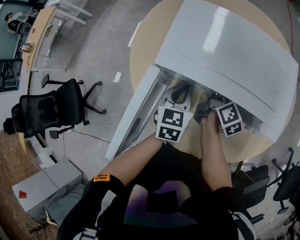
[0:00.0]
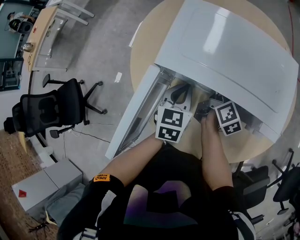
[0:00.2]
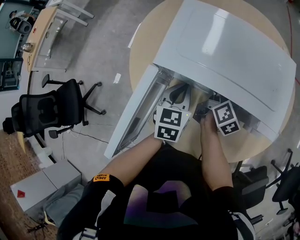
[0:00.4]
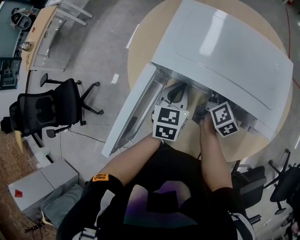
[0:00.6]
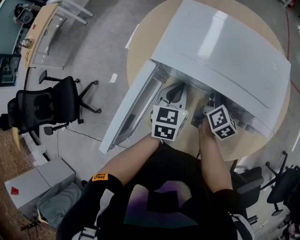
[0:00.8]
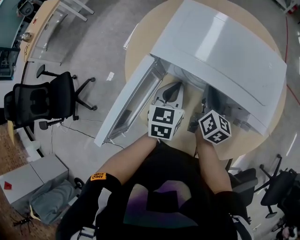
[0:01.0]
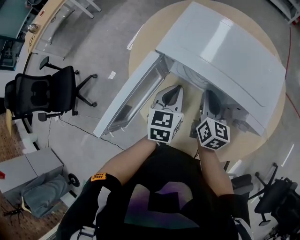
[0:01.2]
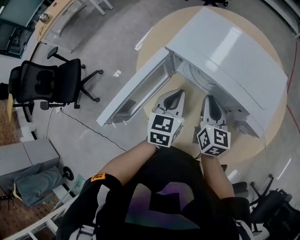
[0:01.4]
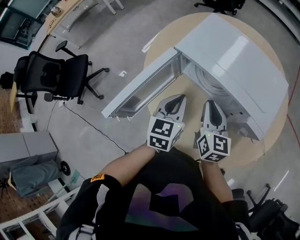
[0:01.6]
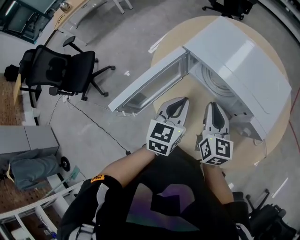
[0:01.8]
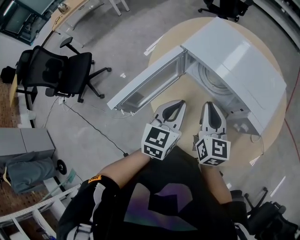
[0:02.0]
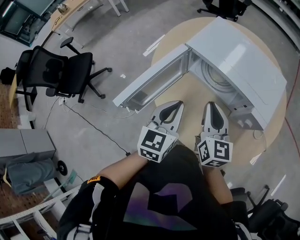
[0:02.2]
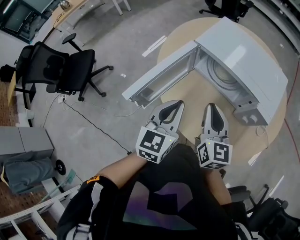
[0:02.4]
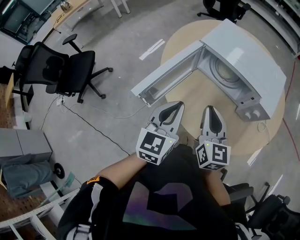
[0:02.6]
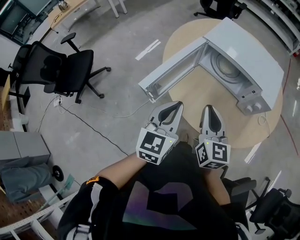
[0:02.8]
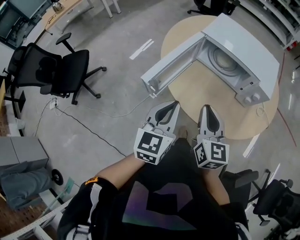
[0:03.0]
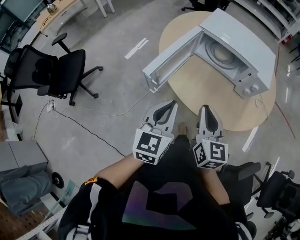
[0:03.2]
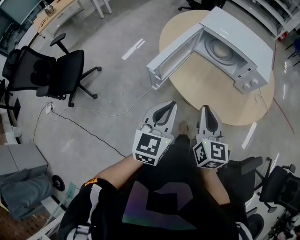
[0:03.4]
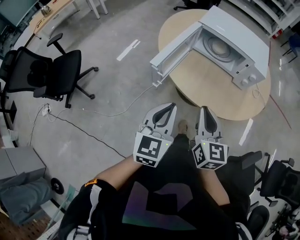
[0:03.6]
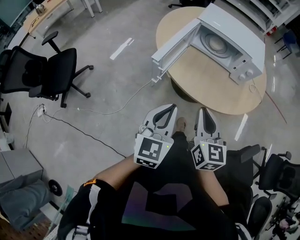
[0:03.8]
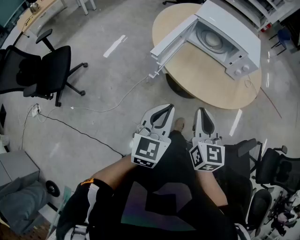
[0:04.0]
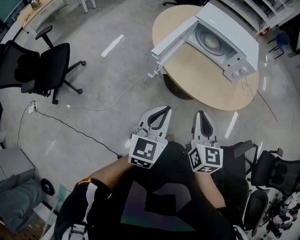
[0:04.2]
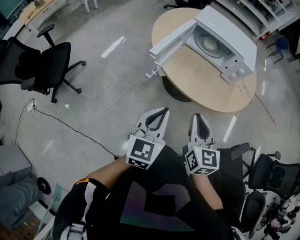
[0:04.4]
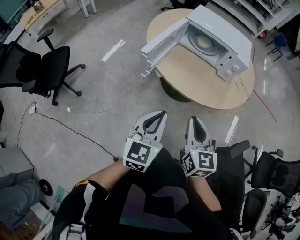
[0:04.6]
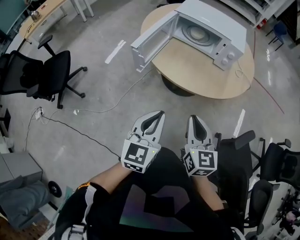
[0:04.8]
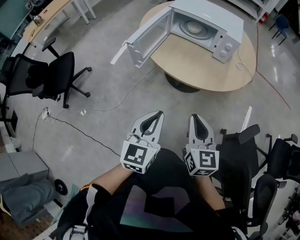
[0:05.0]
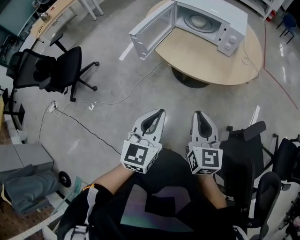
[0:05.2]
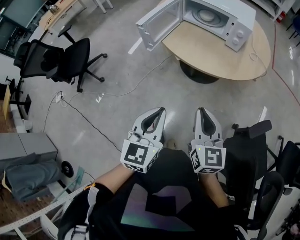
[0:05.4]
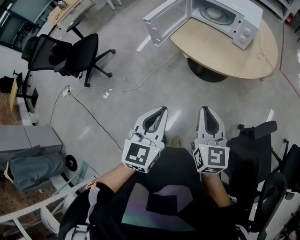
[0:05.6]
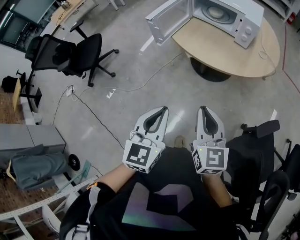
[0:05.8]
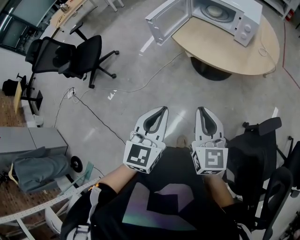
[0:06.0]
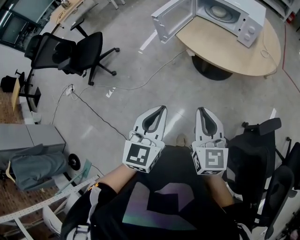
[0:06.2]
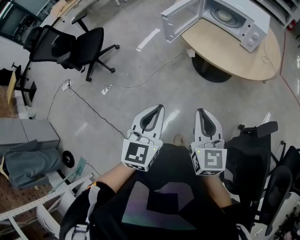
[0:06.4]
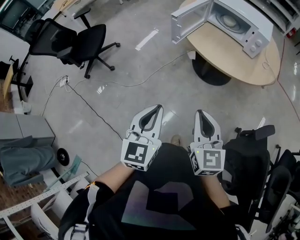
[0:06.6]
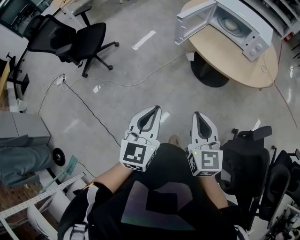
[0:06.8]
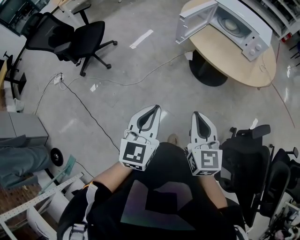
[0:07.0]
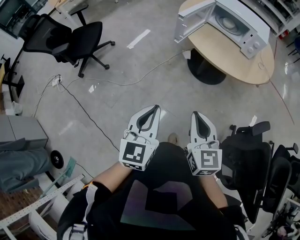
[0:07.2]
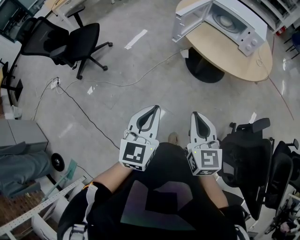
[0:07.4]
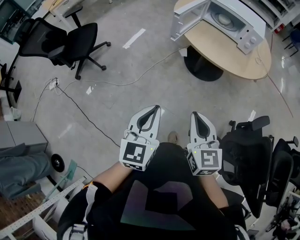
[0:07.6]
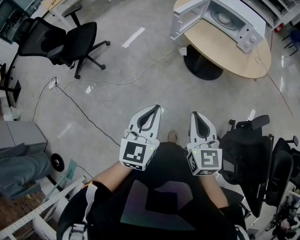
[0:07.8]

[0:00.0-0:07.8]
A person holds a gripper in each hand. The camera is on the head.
0:00.0 to 0:01.6: The right gripper goes approximately 20 cm backward, upward and to the left, and rolls counterclockwise, seen from behind, by some 50 degrees; the left gripper is displaced backward and upward by some 10 cm.
0:01.6 to 0:03.2: Both grippers move backward and to the left, about 30 cm.
0:03.2 to 0:04.6: Both grippers travel together backward, some 15 cm.
0:04.6 to 0:06.2: Both grippers move backward, roughly 20 cm.
0:06.2 to 0:07.8: The left gripper goes approximately 15 cm to the left. Meanwhile the right gripper shifts roughly 15 cm to the left and backward.

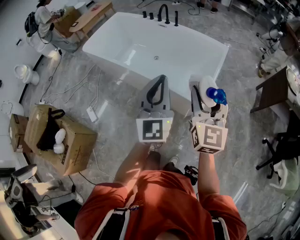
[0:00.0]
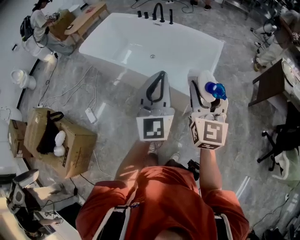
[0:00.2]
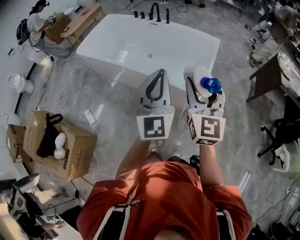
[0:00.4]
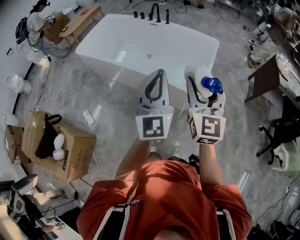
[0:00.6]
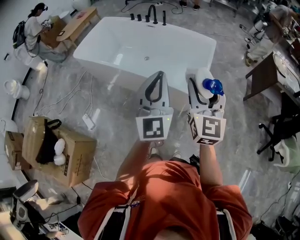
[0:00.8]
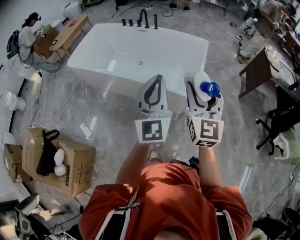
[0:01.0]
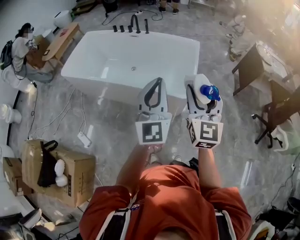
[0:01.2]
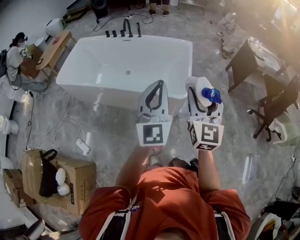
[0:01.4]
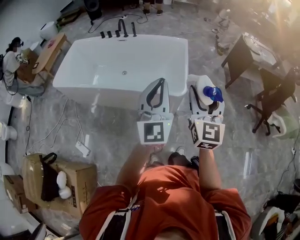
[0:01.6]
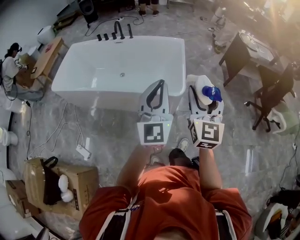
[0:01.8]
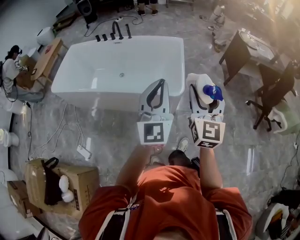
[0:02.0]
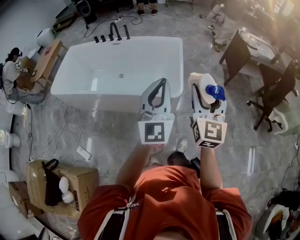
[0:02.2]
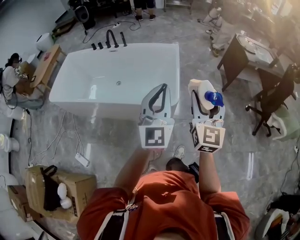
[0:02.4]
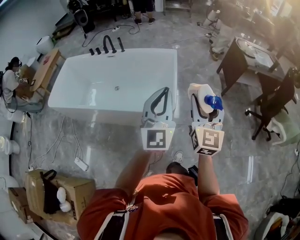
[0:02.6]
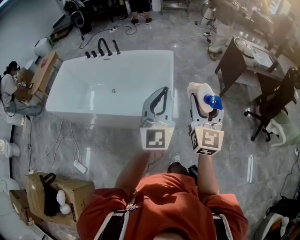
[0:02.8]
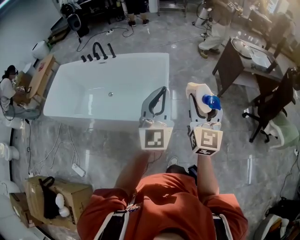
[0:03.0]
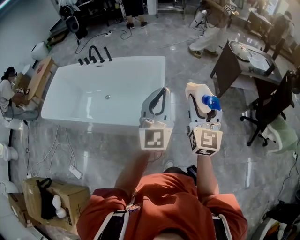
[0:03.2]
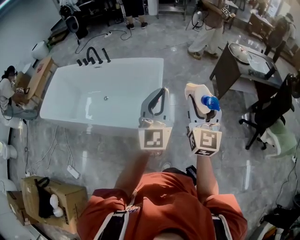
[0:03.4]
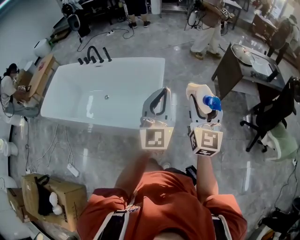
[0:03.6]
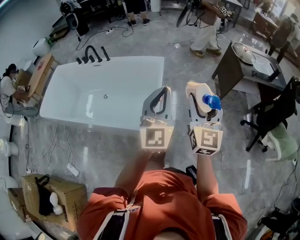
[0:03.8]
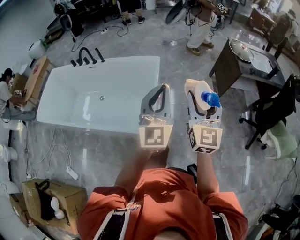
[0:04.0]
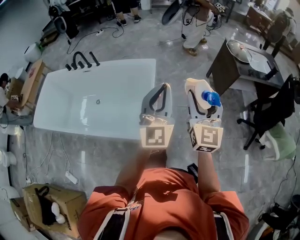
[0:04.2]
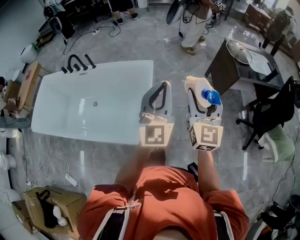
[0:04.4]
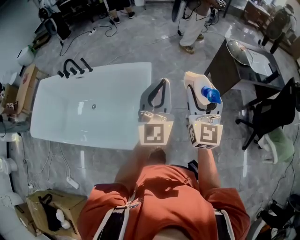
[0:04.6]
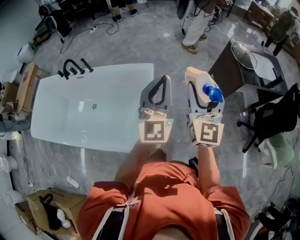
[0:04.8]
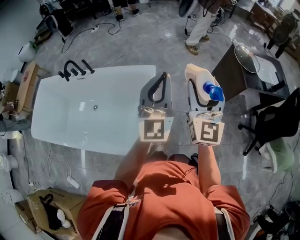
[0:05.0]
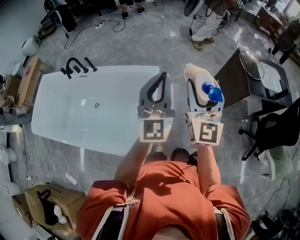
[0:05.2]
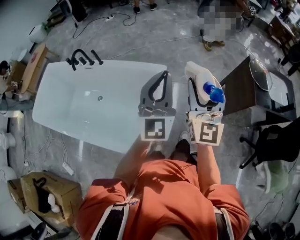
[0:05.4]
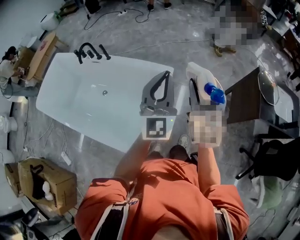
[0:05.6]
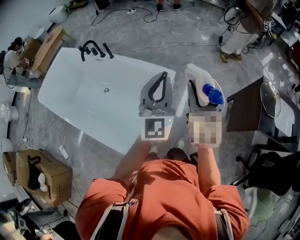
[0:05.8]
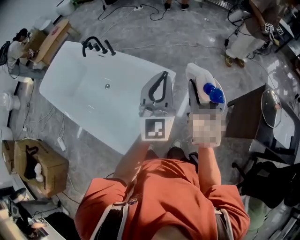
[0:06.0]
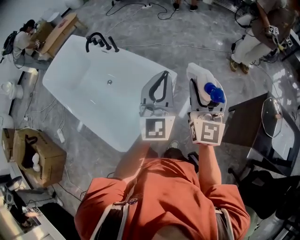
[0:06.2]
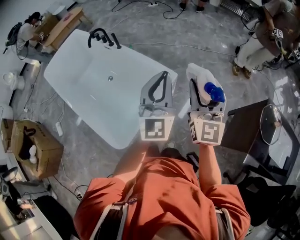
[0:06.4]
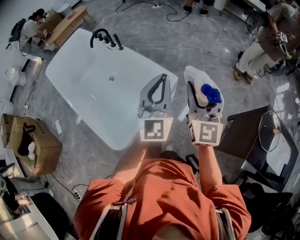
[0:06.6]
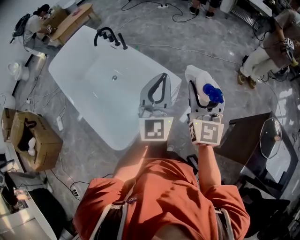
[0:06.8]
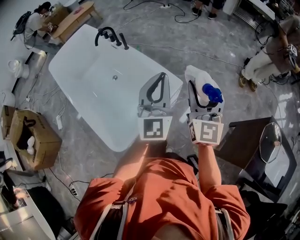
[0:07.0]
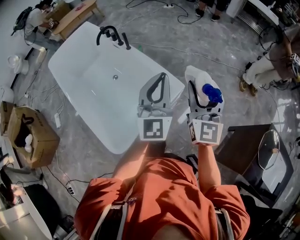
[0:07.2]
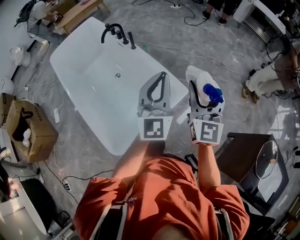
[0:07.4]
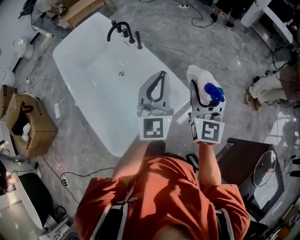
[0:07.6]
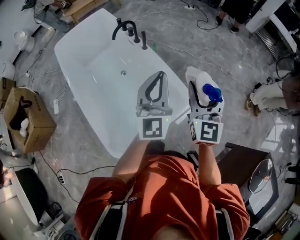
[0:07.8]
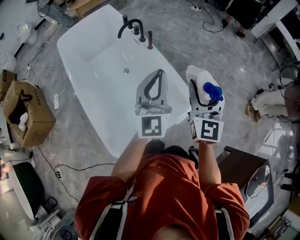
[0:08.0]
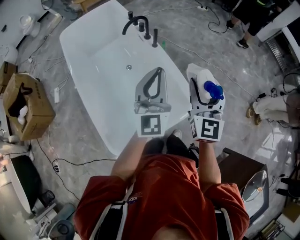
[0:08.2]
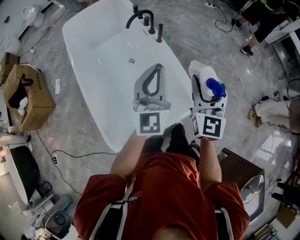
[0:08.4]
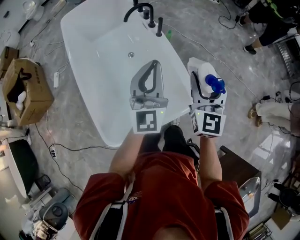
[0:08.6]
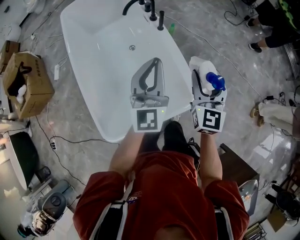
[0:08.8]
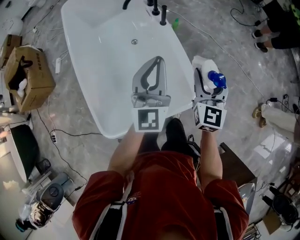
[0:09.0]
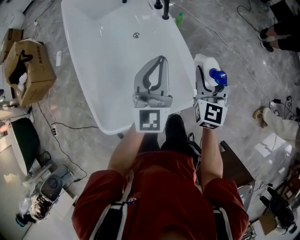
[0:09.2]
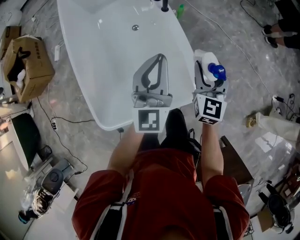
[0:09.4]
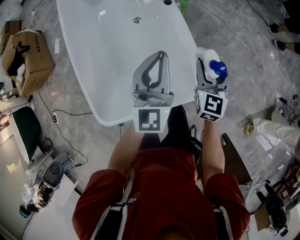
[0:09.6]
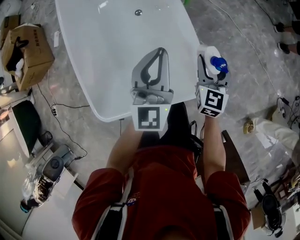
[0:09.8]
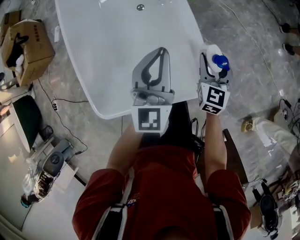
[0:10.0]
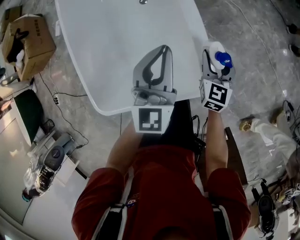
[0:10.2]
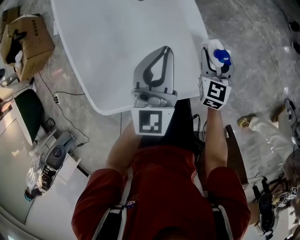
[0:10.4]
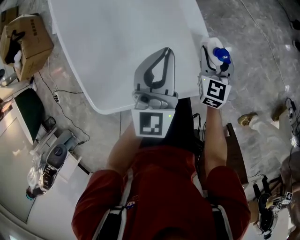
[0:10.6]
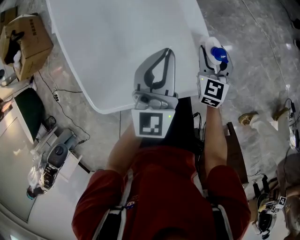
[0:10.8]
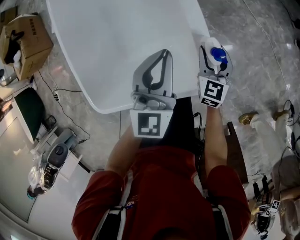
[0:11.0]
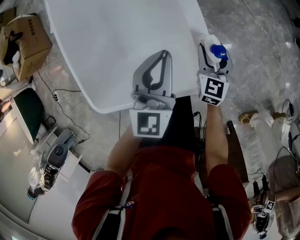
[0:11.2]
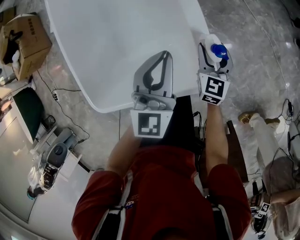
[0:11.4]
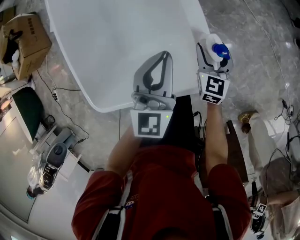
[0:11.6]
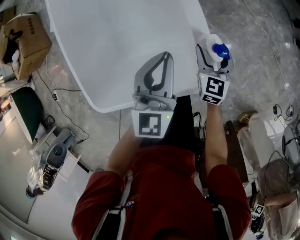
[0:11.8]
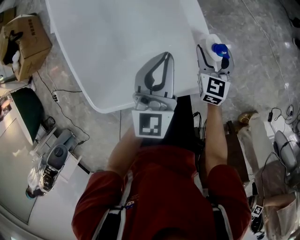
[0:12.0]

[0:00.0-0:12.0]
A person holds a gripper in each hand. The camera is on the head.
0:00.0 to 0:01.6: The right gripper goes some 10 cm backward, and changes its angle by approximately 20 degrees; the left gripper shifts about 5 cm backward, and turns by some 20 degrees.
0:01.6 to 0:03.0: Both grippers travel together forward and to the right, some 25 cm.
0:03.0 to 0:04.4: The two grippers go roughly 25 cm forward and to the right.
0:04.4 to 0:06.0: The right gripper changes place by about 30 cm, and swivels approximately 30 degrees, while the left gripper moves roughly 25 cm, and rotates approximately 30 degrees.
0:06.0 to 0:07.6: The left gripper moves forward and to the left, roughly 20 cm, and turns by about 20 degrees. The right gripper goes about 20 cm forward, and changes its angle by about 20 degrees.
0:07.6 to 0:09.0: The left gripper heads forward, downward and to the left, covering some 20 cm, while the right gripper heads forward and downward, covering roughly 25 cm, and rotates roughly 20 degrees.
0:09.0 to 0:10.4: The right gripper heads downward, covering roughly 25 cm. The left gripper heads downward, covering roughly 15 cm.
0:10.4 to 0:12.0: The grippers stay close to where they were, moving slightly.

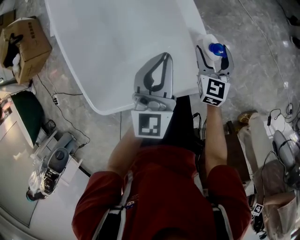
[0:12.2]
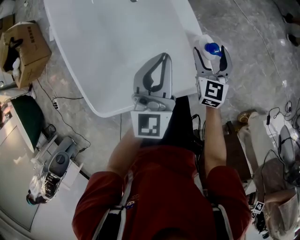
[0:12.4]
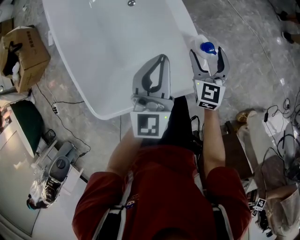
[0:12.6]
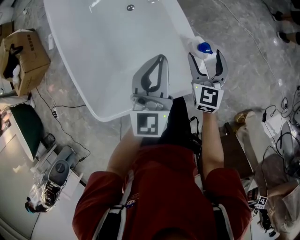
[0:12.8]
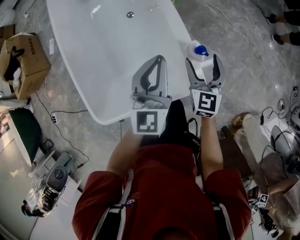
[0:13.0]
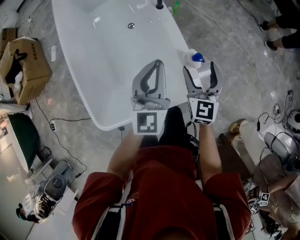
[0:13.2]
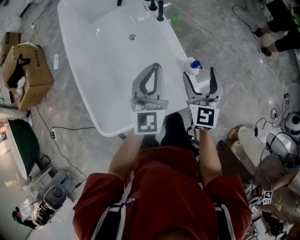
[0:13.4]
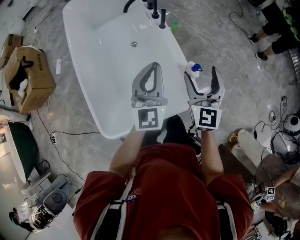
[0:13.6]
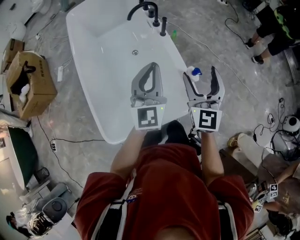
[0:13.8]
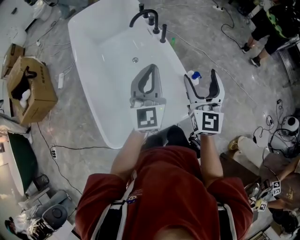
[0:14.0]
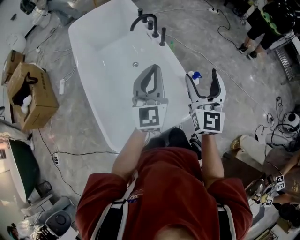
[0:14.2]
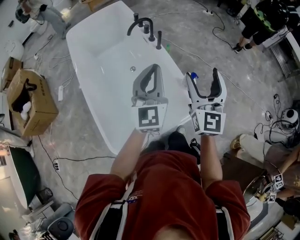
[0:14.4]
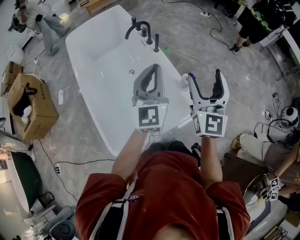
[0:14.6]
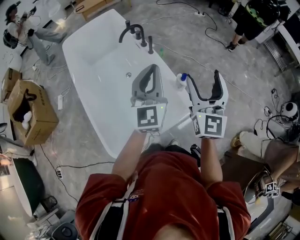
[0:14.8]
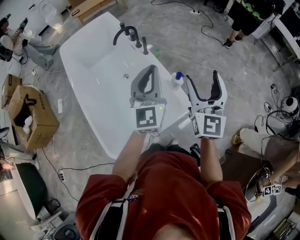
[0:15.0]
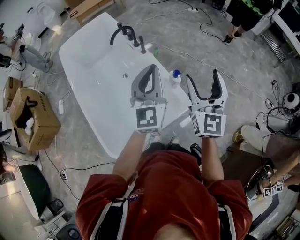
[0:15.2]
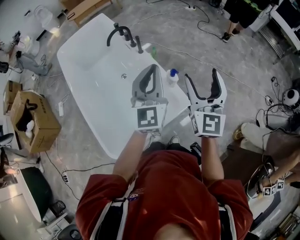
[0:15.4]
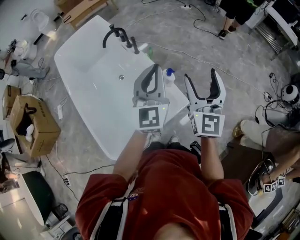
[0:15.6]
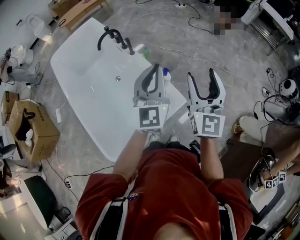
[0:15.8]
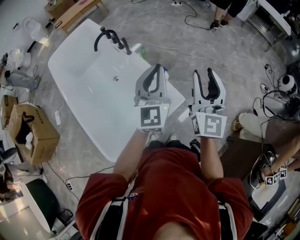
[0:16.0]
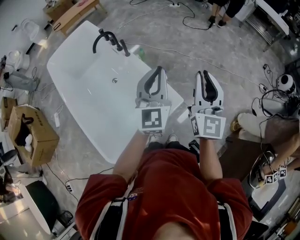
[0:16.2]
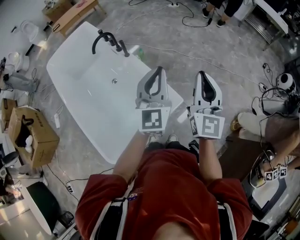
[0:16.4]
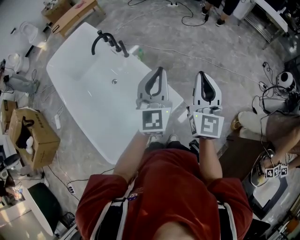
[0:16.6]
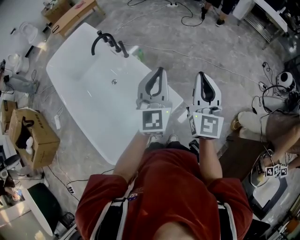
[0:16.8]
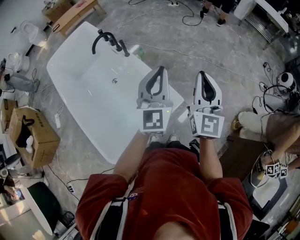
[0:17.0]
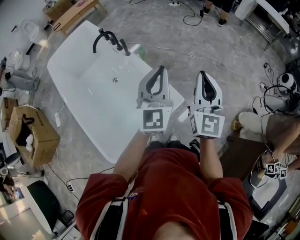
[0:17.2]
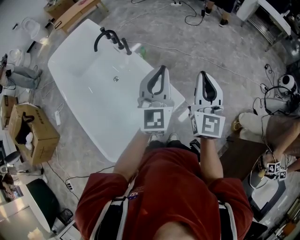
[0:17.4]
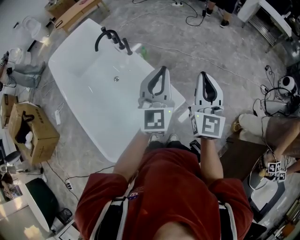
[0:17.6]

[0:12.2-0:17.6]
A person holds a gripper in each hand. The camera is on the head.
0:12.2 to 0:13.6: The right gripper travels upward by about 30 cm, and changes its angle by about 20 degrees, while the left gripper is displaced upward by some 15 cm.
0:13.6 to 0:15.0: The right gripper heads upward and backward, covering approximately 20 cm, while the left gripper goes approximately 10 cm upward.
0:15.0 to 0:16.2: The two grippers go some 10 cm to the right. The right gripper closes.
0:16.2 to 0:17.6: There are only small adjustments of the grippers.
